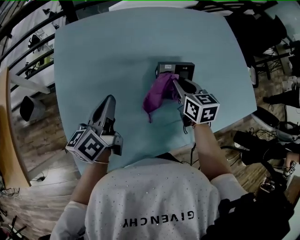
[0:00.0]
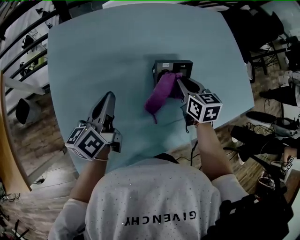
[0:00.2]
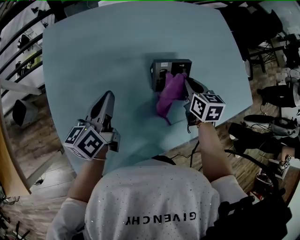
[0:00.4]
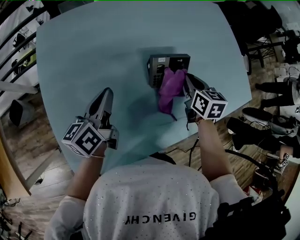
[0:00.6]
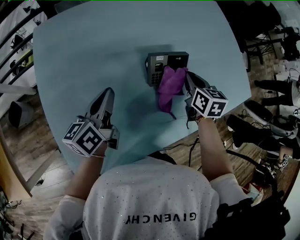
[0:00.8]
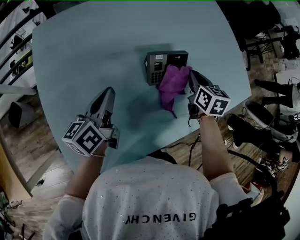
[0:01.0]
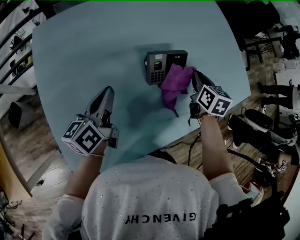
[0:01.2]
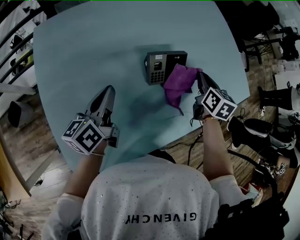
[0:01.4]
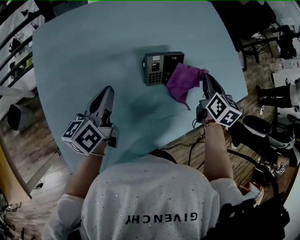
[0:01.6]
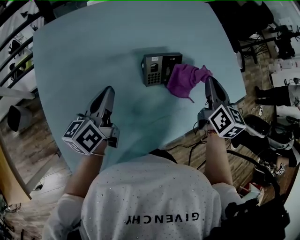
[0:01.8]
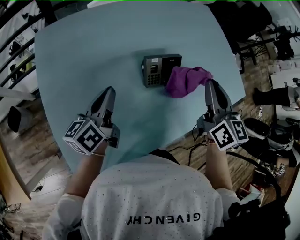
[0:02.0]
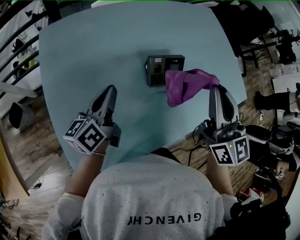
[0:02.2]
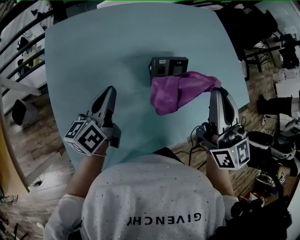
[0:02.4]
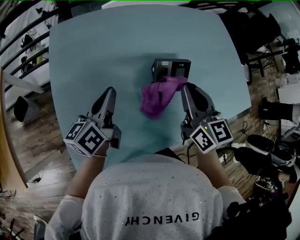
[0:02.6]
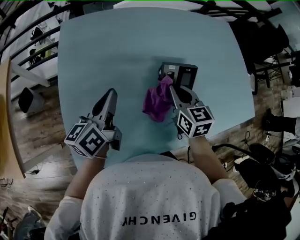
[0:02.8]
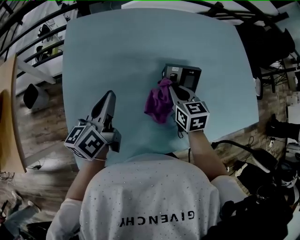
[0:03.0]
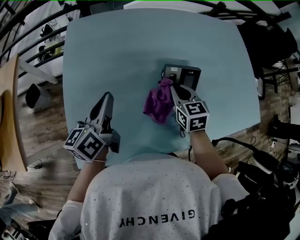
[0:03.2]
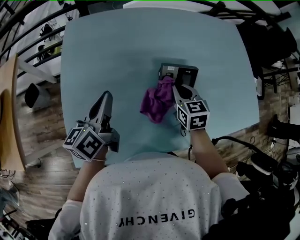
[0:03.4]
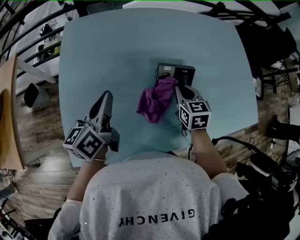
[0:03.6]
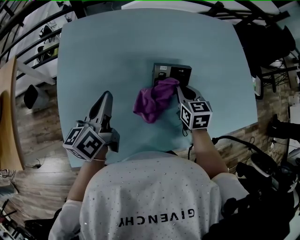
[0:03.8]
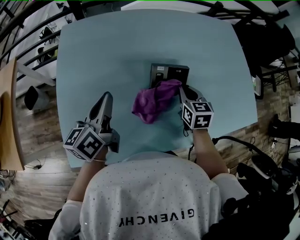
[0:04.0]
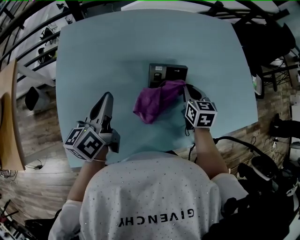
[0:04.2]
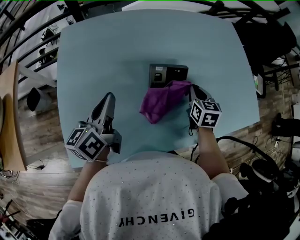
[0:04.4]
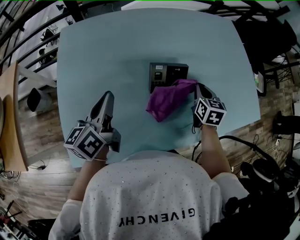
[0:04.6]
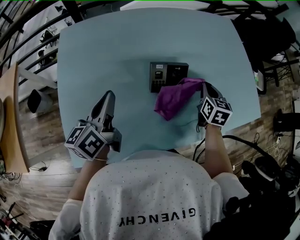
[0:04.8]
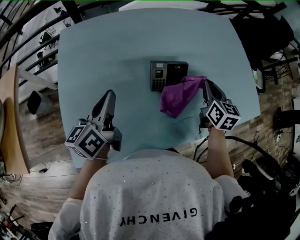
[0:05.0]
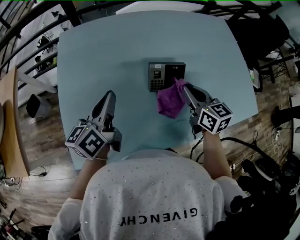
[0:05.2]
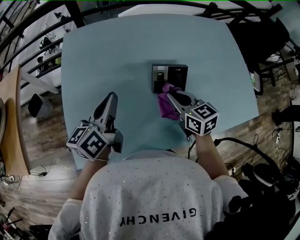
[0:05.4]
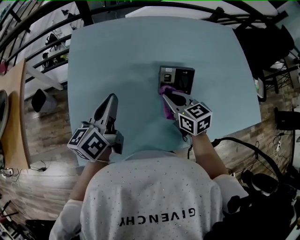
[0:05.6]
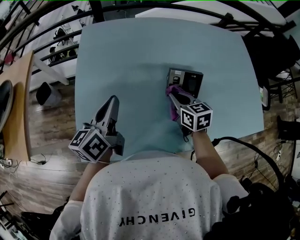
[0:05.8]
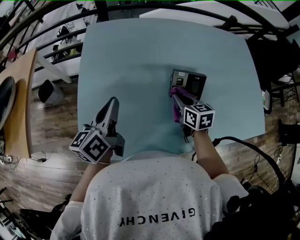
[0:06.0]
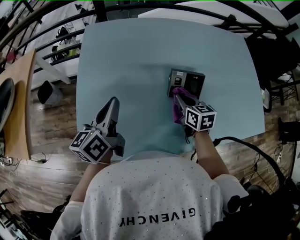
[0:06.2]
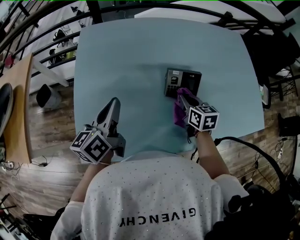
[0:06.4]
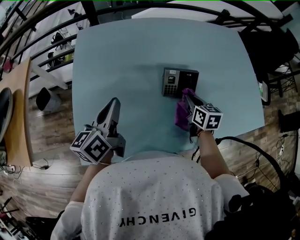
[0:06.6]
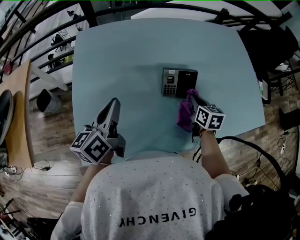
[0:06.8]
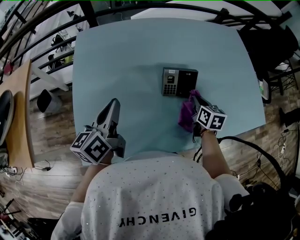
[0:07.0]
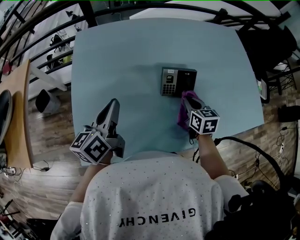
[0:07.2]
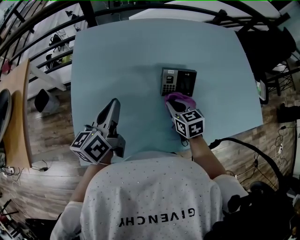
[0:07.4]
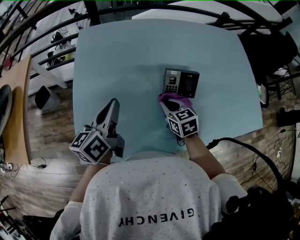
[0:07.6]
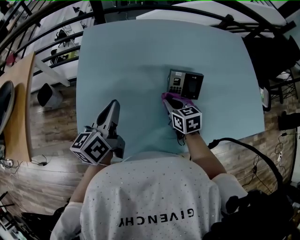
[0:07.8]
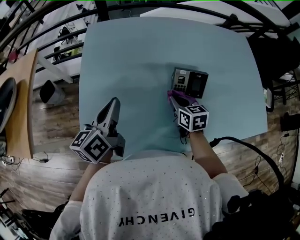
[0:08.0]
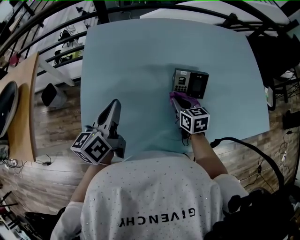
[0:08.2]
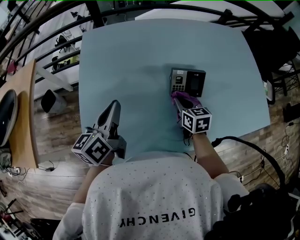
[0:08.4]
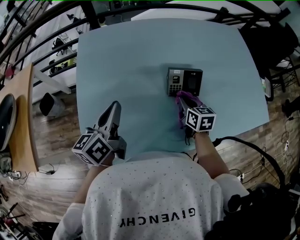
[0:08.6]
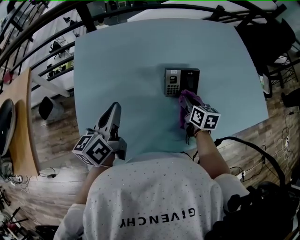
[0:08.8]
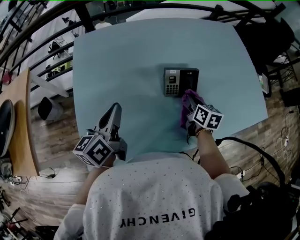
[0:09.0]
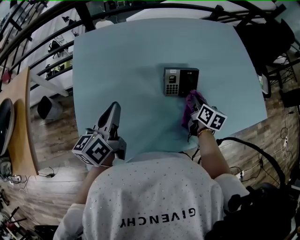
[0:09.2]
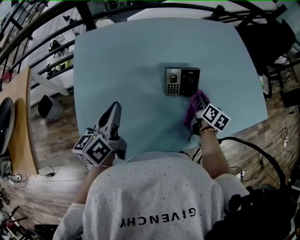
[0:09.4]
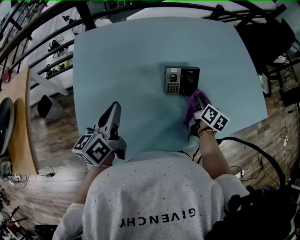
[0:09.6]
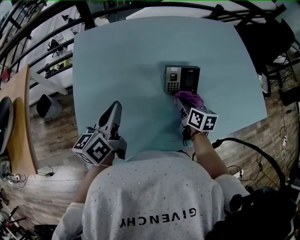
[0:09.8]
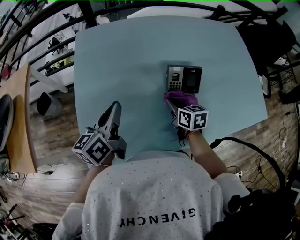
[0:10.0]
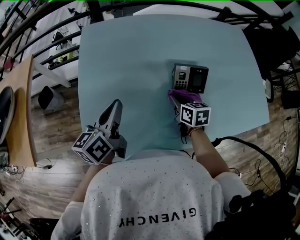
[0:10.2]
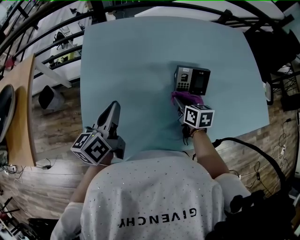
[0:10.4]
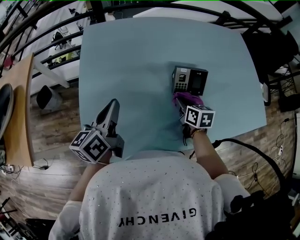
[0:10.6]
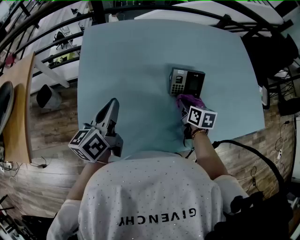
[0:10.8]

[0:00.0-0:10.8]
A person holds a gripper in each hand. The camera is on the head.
0:00.0 to 0:01.6: The left gripper ends up approximately 5 cm from where it was; the right gripper shifts some 15 cm to the right, and rotates approximately 30 degrees.
0:01.6 to 0:03.0: The left gripper shifts by about 10 cm. The right gripper goes some 20 cm to the left, travels upward and back again, about 20 cm each way, and changes its angle by some 40 degrees.
0:03.0 to 0:04.6: The right gripper moves to the right, roughly 20 cm. The left gripper moves to the right, roughly 5 cm.
0:04.6 to 0:06.2: The left gripper shifts about 5 cm to the left. Meanwhile the right gripper shifts approximately 20 cm to the left, and swivels about 30 degrees.
0:06.2 to 0:07.8: The right gripper moves about 10 cm to the right and comes back.
0:07.8 to 0:09.2: The right gripper moves to the right, about 15 cm, and turns by roughly 40 degrees.
0:09.2 to 0:10.8: The right gripper shifts roughly 10 cm to the left.

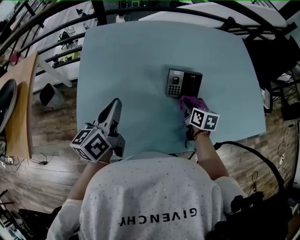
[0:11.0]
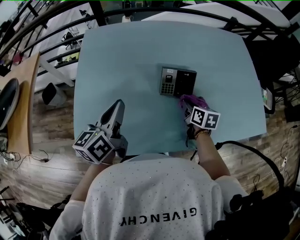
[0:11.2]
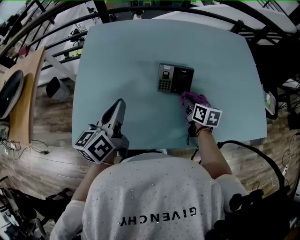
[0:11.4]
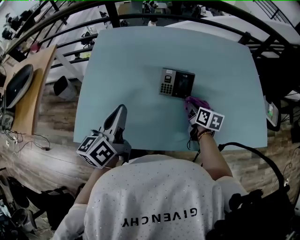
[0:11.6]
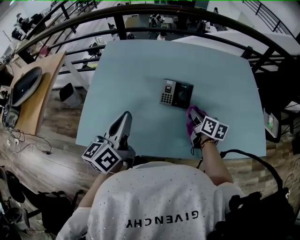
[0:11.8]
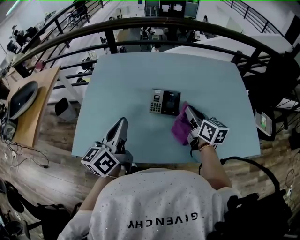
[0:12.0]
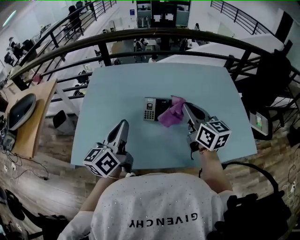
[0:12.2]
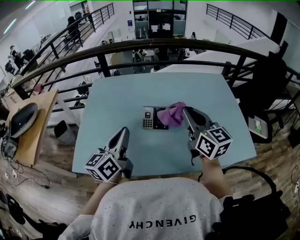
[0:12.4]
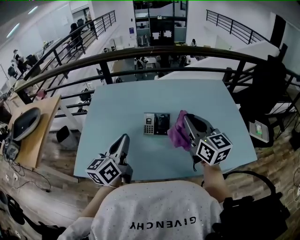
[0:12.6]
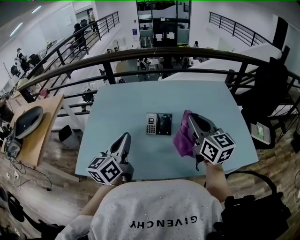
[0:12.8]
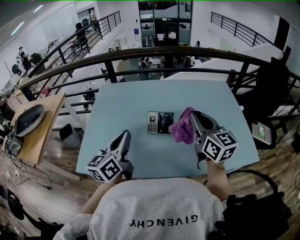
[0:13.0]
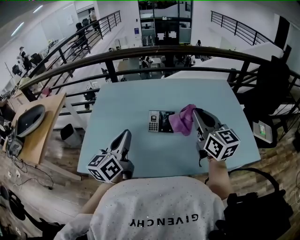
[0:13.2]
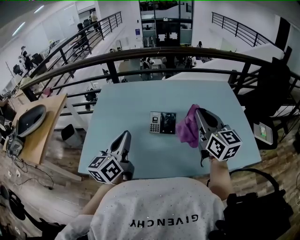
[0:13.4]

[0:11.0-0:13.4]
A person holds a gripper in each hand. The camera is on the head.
0:11.0 to 0:12.2: The right gripper goes about 25 cm upward, and tilts its fingers roughly 30 degrees upward. Meanwhile the left gripper travels to the right, upward and backward by about 20 cm.
0:12.2 to 0:13.4: The right gripper heads upward, covering some 5 cm.

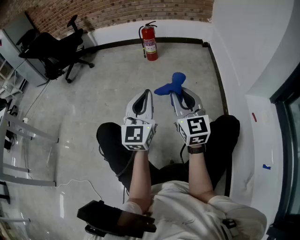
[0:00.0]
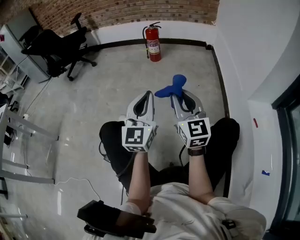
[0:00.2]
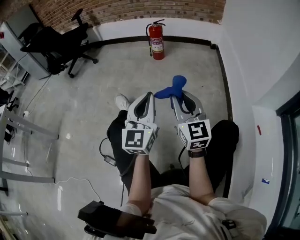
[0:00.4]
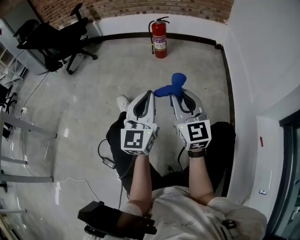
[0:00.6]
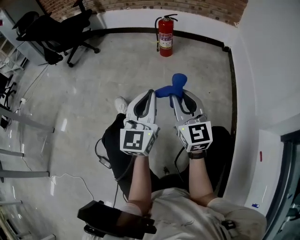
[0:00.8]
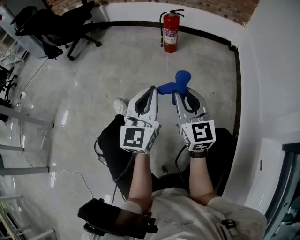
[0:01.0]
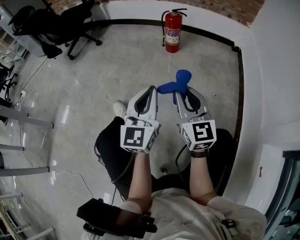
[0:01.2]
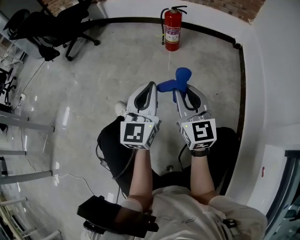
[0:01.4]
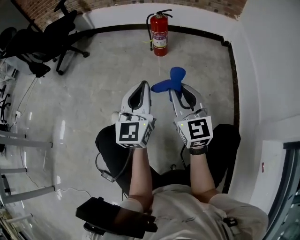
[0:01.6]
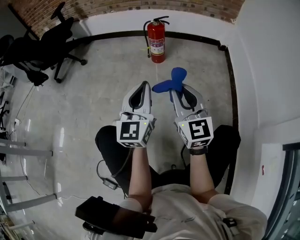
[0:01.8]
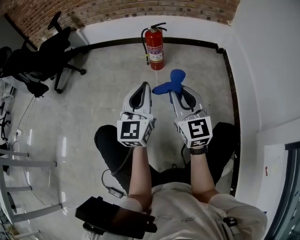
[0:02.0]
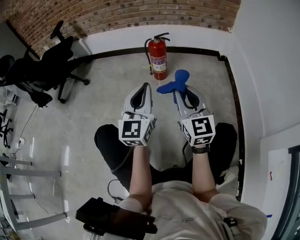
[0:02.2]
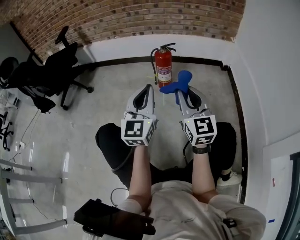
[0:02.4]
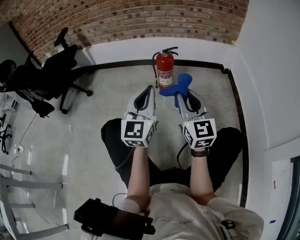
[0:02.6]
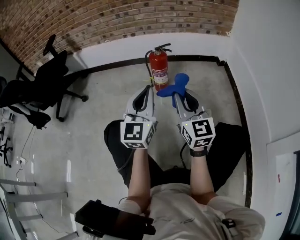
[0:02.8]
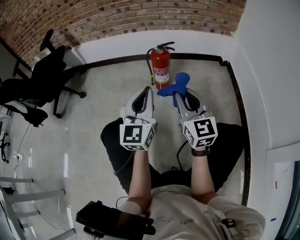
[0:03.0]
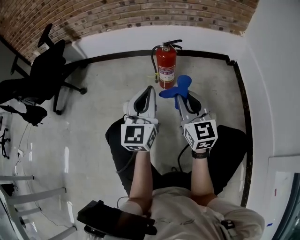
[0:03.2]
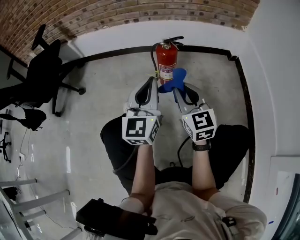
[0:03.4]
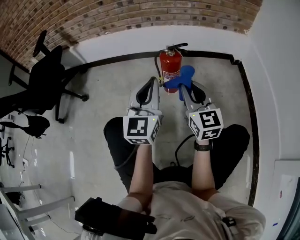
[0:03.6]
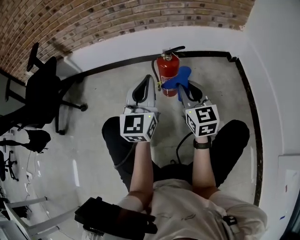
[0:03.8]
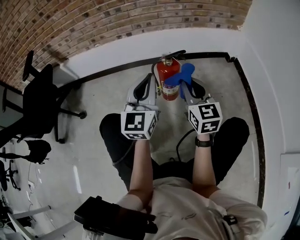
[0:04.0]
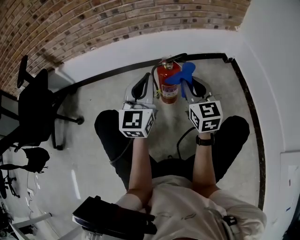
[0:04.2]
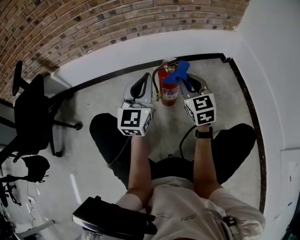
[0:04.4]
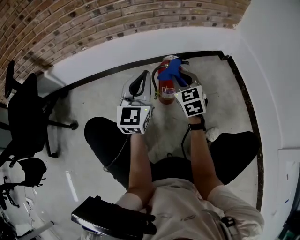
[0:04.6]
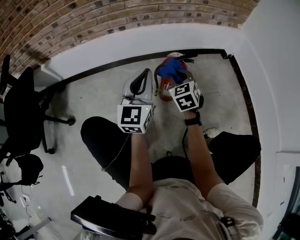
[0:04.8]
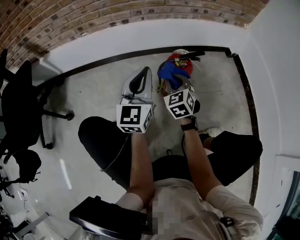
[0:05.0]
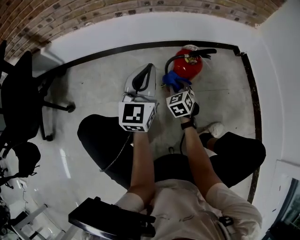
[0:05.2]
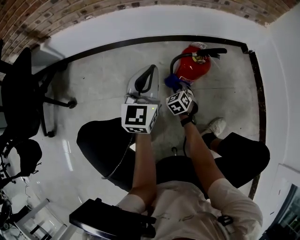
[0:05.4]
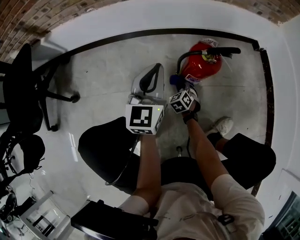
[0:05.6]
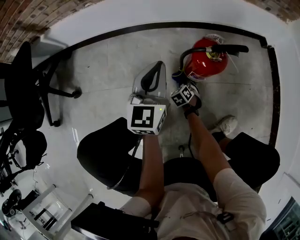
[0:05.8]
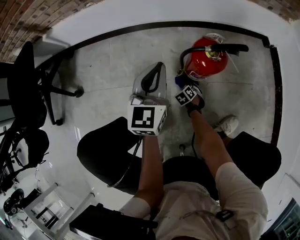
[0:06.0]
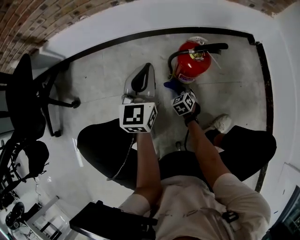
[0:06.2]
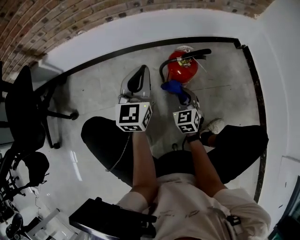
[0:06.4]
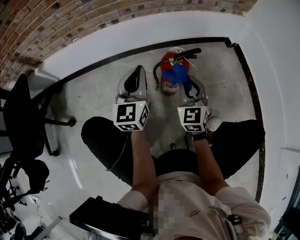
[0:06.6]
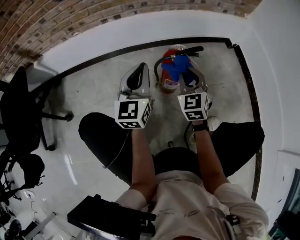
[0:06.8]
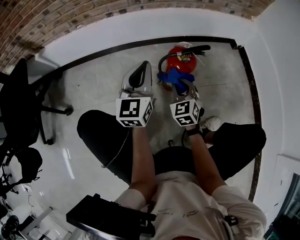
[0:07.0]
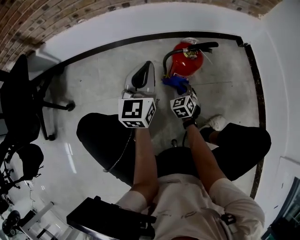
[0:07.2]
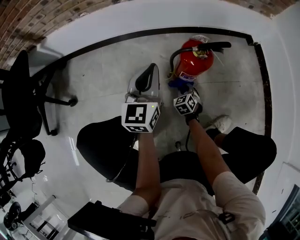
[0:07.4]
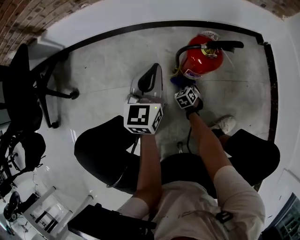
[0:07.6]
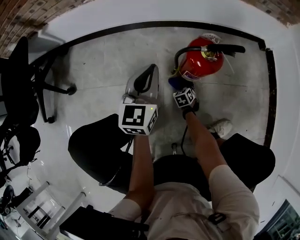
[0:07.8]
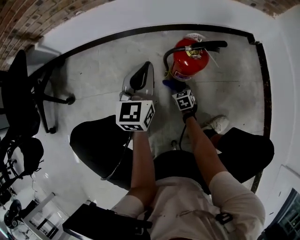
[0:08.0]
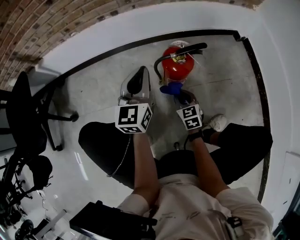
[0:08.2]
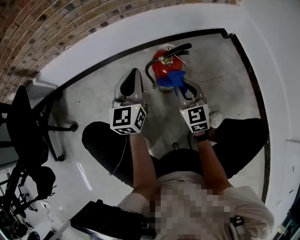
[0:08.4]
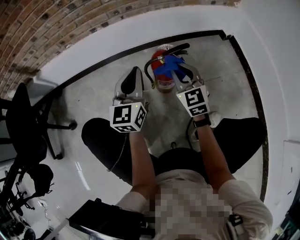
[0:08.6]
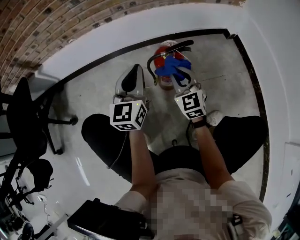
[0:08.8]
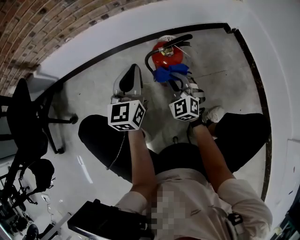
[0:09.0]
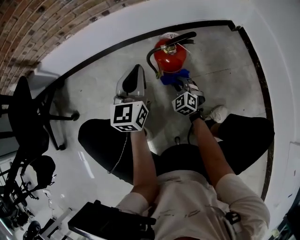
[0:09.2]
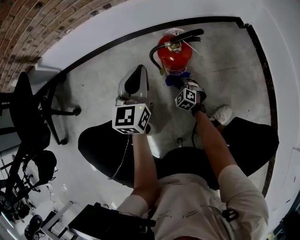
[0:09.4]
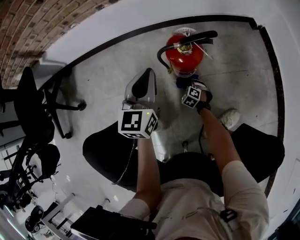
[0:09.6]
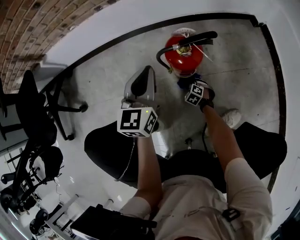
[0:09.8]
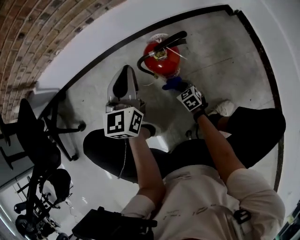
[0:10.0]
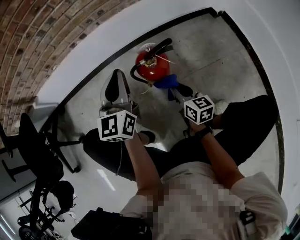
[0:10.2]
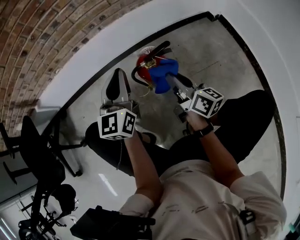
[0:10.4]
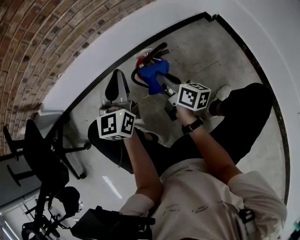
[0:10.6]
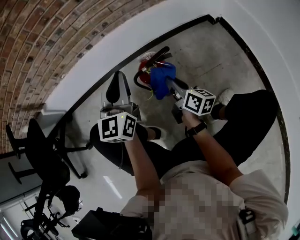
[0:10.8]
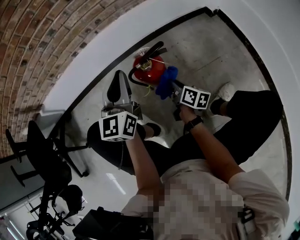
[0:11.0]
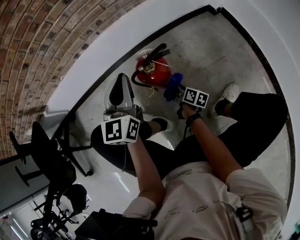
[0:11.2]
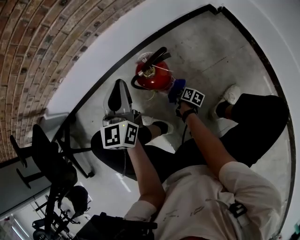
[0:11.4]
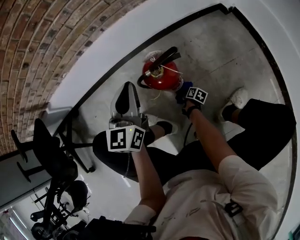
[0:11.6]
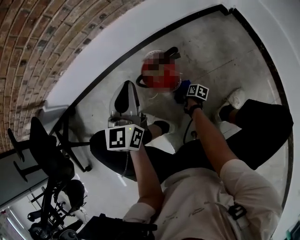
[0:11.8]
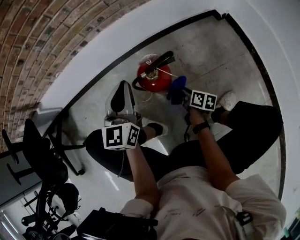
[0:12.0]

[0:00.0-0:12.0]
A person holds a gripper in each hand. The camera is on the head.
0:00.0 to 0:01.6: Both grippers travel together forward, approximately 30 cm.
0:01.6 to 0:03.0: The two grippers go approximately 25 cm forward.
0:03.0 to 0:04.4: The grippers both shift forward by about 30 cm. The right gripper turns by about 20 degrees.
0:04.4 to 0:06.0: The left gripper shifts some 20 cm downward and forward; the right gripper is displaced downward by some 50 cm, and points its fingers some 50 degrees further downward.
0:06.0 to 0:07.6: The right gripper reaches approximately 40 cm upward, then returns. Meanwhile the left gripper reaches approximately 10 cm upward, then returns.
0:07.6 to 0:09.0: The left gripper goes roughly 10 cm upward. The right gripper shifts some 30 cm upward, and tips its fingers upward by about 40 degrees.
0:09.0 to 0:10.4: The right gripper heads to the right, covering approximately 5 cm, reaches approximately 35 cm downward, then returns, and rolls clockwise, seen from behind, by approximately 80 degrees; the left gripper moves about 5 cm.
0:10.4 to 0:12.0: The right gripper goes about 25 cm downward, and changes its angle by approximately 30 degrees.
